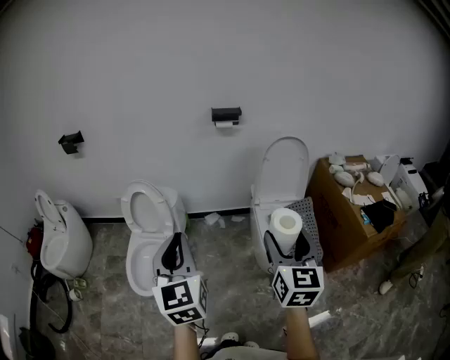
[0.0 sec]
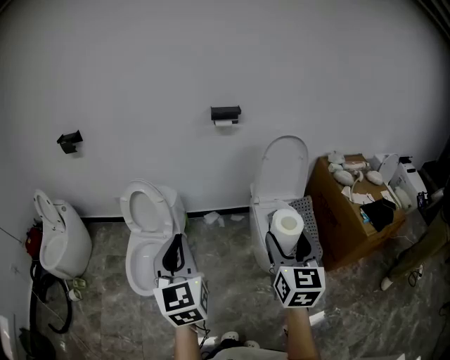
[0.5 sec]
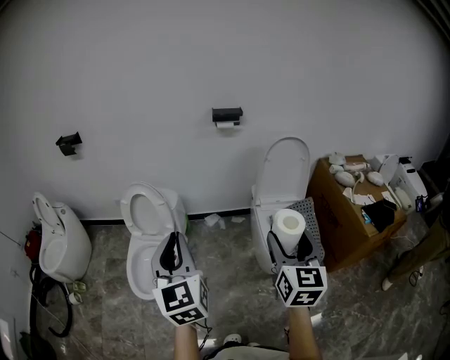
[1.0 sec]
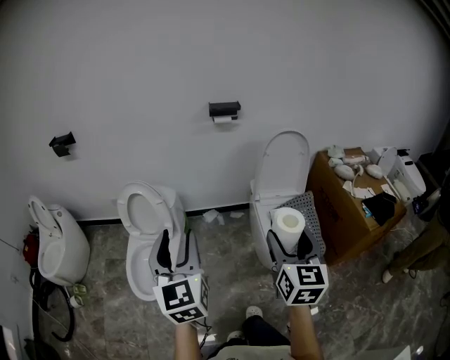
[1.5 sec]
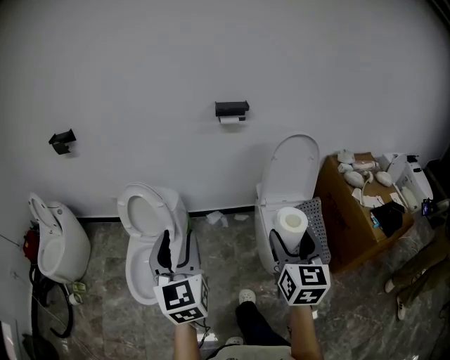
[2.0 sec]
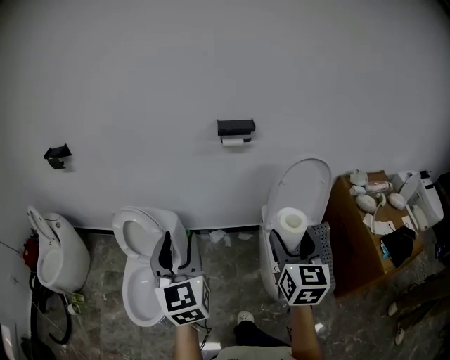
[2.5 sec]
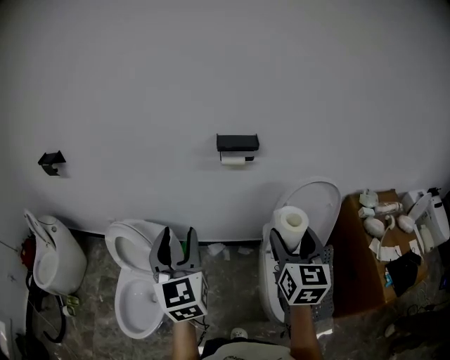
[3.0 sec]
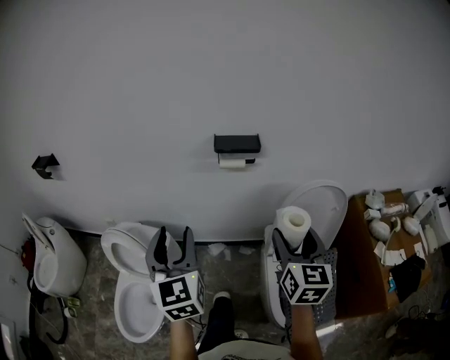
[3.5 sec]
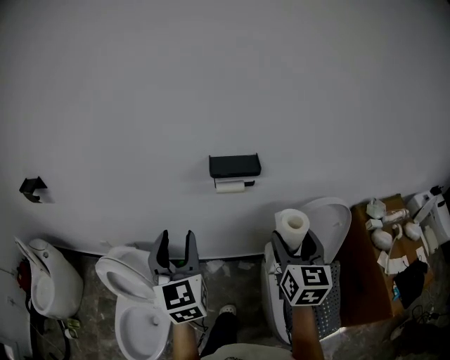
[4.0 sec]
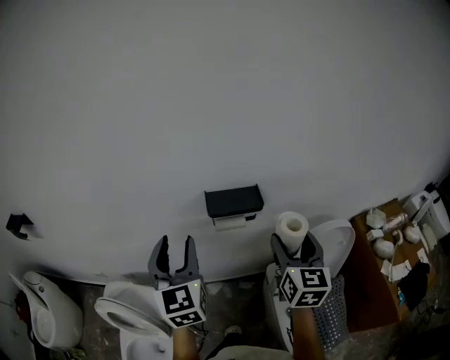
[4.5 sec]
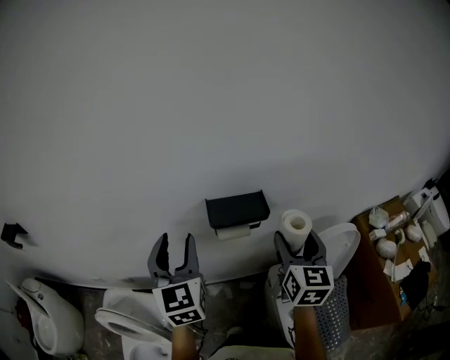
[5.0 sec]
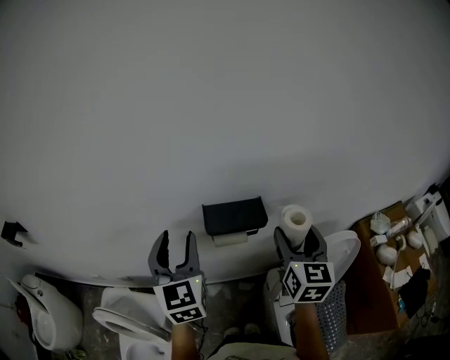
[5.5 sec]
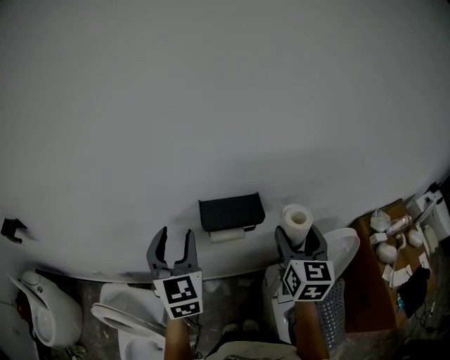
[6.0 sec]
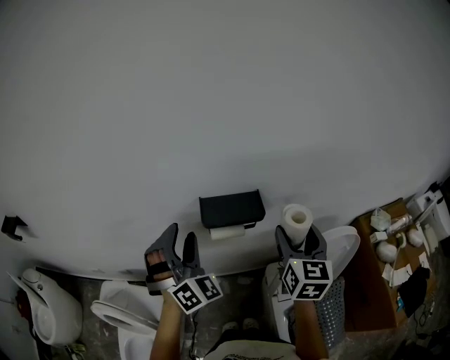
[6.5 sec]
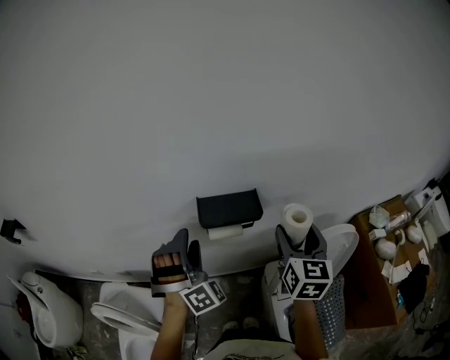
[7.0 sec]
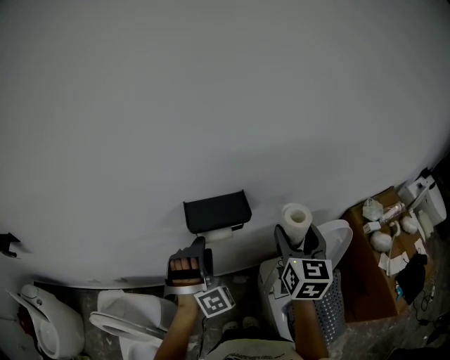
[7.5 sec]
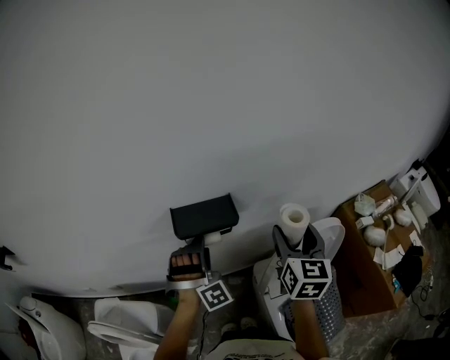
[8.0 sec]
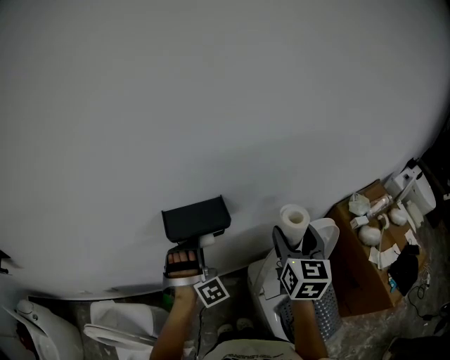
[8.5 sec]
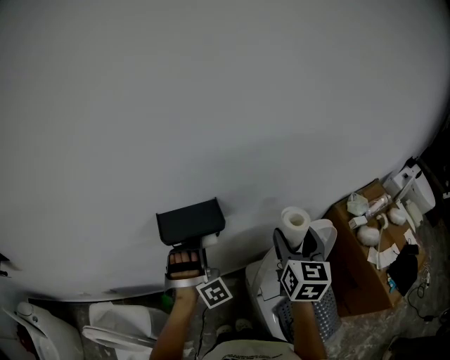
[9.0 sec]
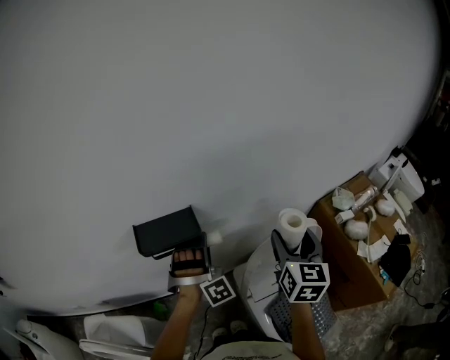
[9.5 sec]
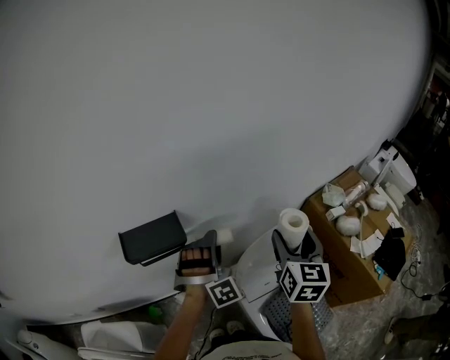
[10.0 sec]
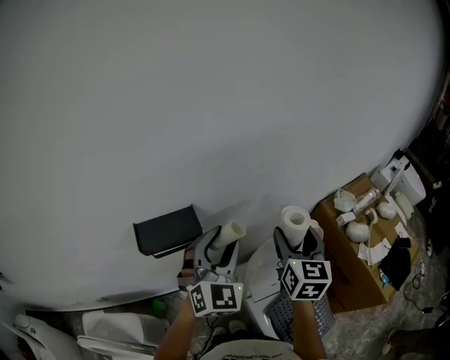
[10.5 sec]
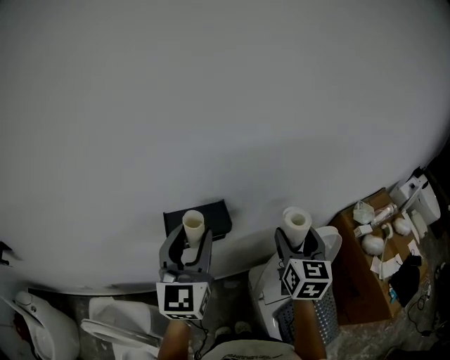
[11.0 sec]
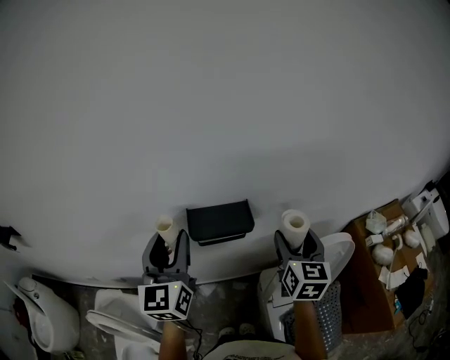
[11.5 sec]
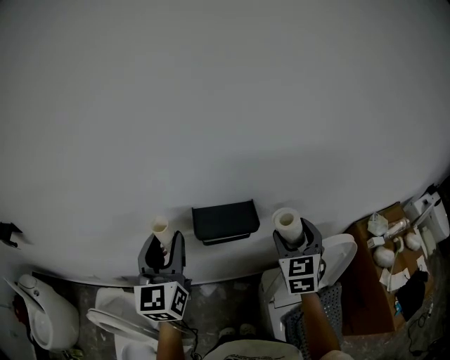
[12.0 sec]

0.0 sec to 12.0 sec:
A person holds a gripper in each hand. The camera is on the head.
0.0 sec to 2.0 sec: Both grippers move forward, approximately 10 cm. The left gripper opens its fingers.
2.0 sec to 4.0 sec: The pair of grippers is taken forward, roughly 50 cm.
4.0 sec to 6.0 sec: Both grippers travel together forward, approximately 20 cm.
6.0 sec to 8.0 sec: The left gripper is displaced downward and to the right by about 20 cm, and rolls clockwise, seen from behind, by roughly 70 degrees. Meanwhile the right gripper moves to the right, about 5 cm.
8.0 sec to 10.0 sec: The grippers both shift to the right by about 15 cm.
10.0 sec to 12.0 sec: The left gripper moves to the left and upward, some 35 cm, and twists some 80 degrees counterclockwise, seen from behind. Meanwhile the right gripper heads to the left, covering some 20 cm, and changes its angle by about 30 degrees.

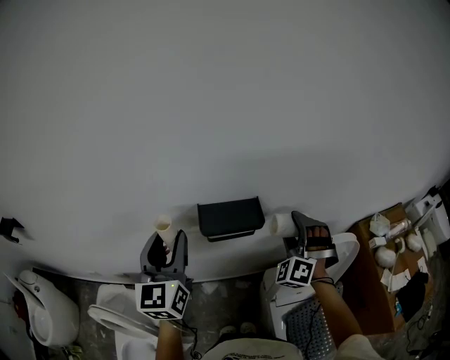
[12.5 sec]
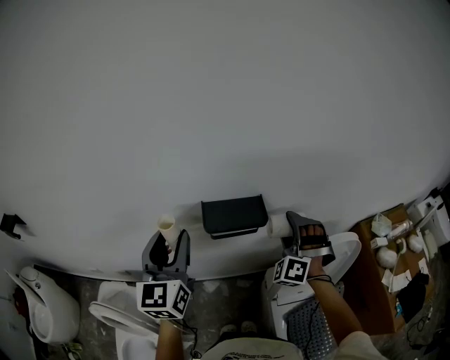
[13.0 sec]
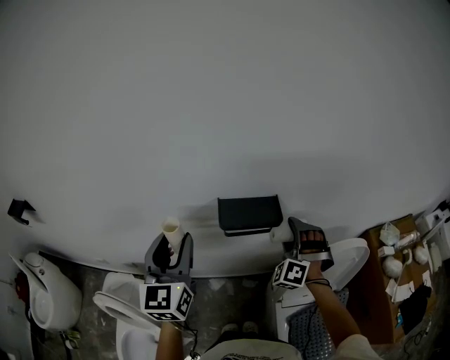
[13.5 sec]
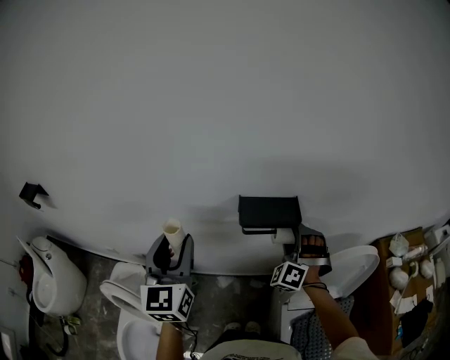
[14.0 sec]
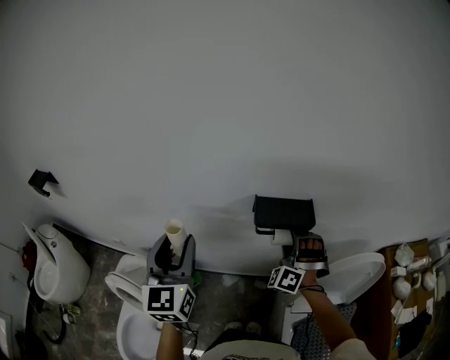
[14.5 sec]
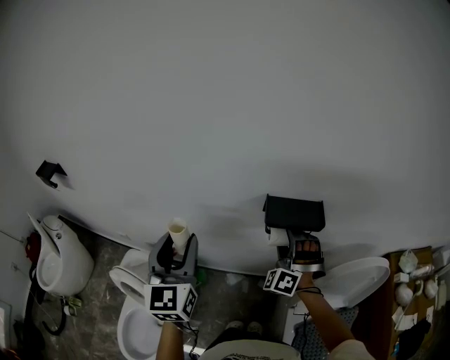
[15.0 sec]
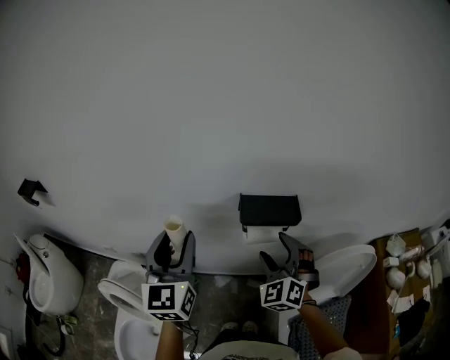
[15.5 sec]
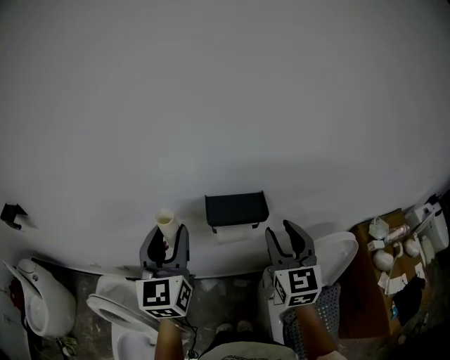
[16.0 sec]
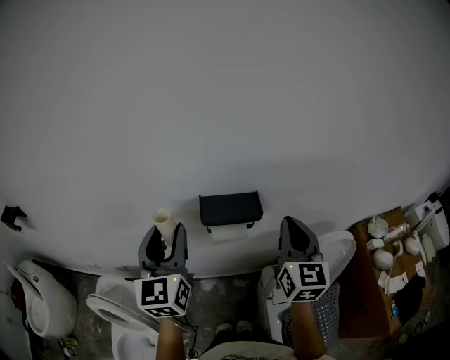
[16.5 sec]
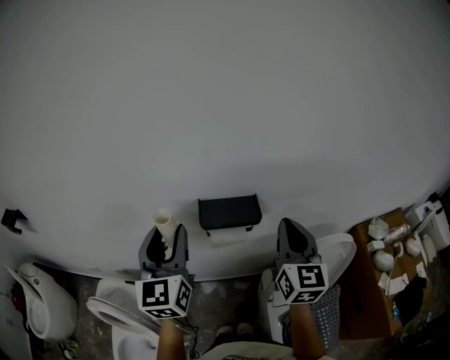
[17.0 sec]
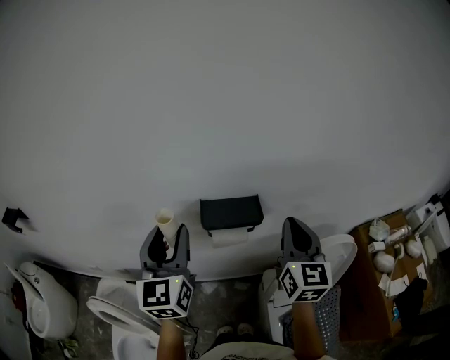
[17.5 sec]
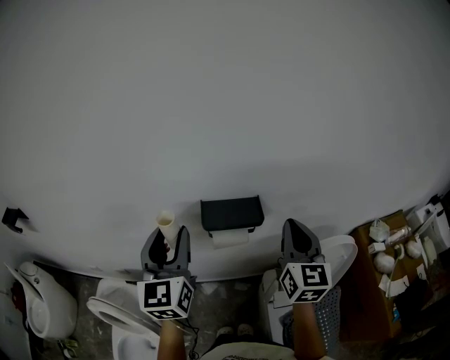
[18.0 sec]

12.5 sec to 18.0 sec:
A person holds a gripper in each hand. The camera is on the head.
12.5 sec to 14.5 sec: The right gripper heads to the left, covering about 15 cm. Meanwhile the left gripper shifts roughly 15 cm to the left and backward.
14.5 sec to 16.0 sec: The left gripper goes some 10 cm to the right. The right gripper moves upward, backward and to the right, about 15 cm, twists roughly 70 degrees clockwise, seen from behind, and closes up.
16.0 sec to 18.0 sec: The right gripper changes place by roughly 5 cm, and closes up.

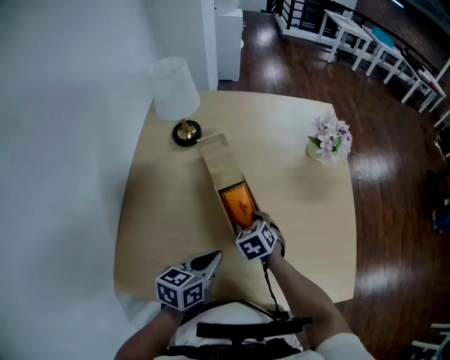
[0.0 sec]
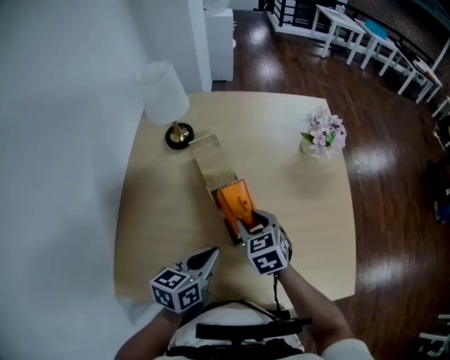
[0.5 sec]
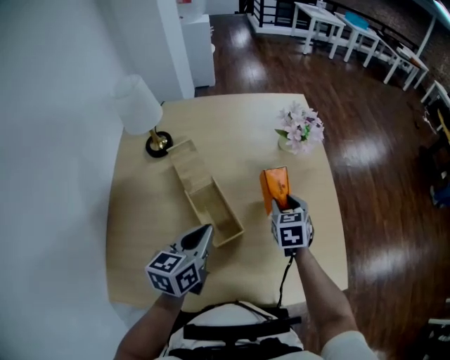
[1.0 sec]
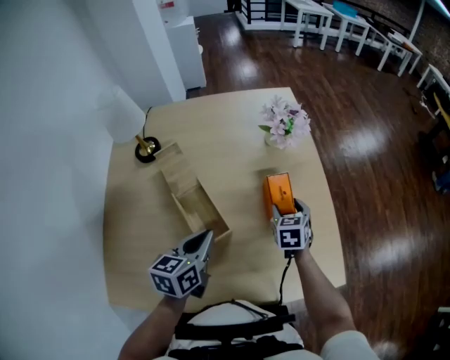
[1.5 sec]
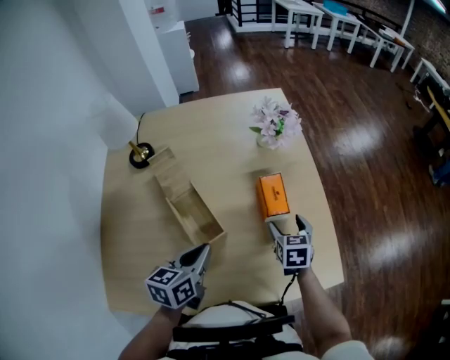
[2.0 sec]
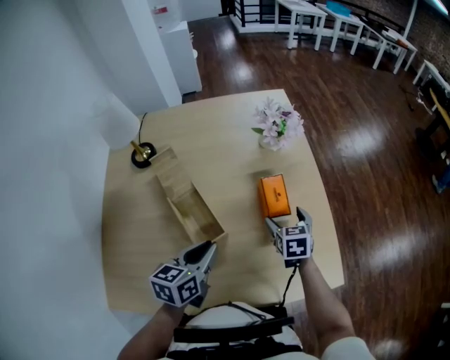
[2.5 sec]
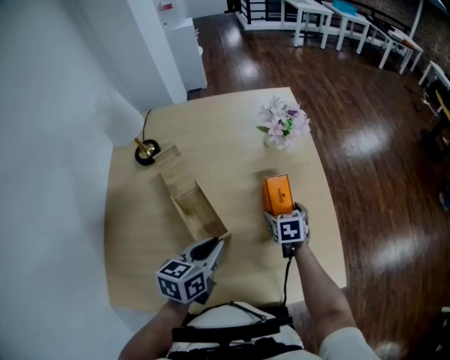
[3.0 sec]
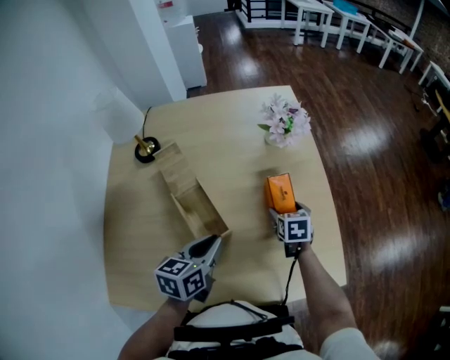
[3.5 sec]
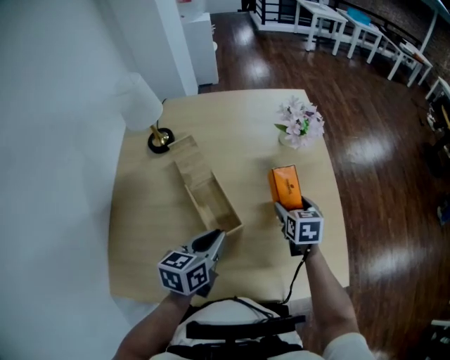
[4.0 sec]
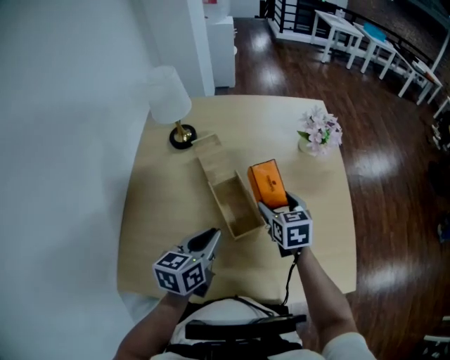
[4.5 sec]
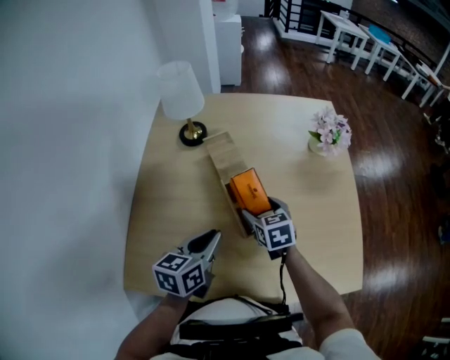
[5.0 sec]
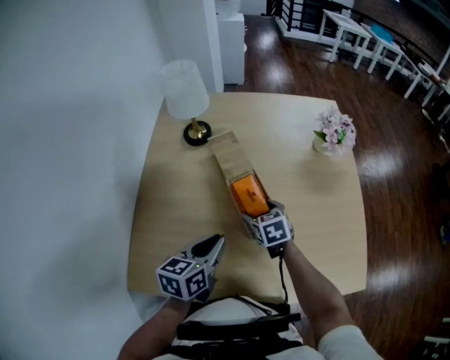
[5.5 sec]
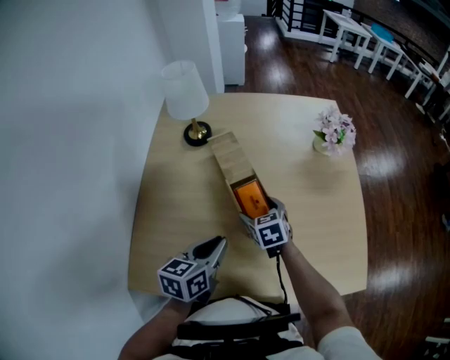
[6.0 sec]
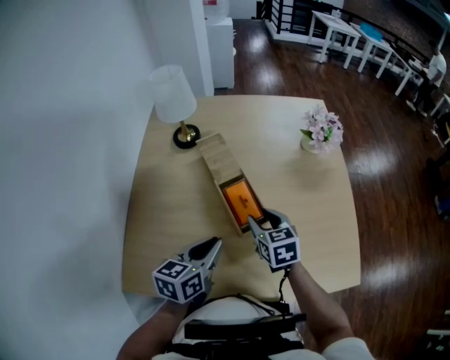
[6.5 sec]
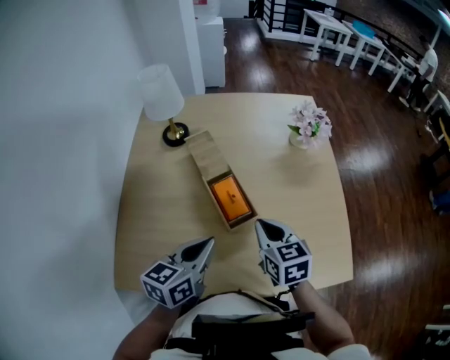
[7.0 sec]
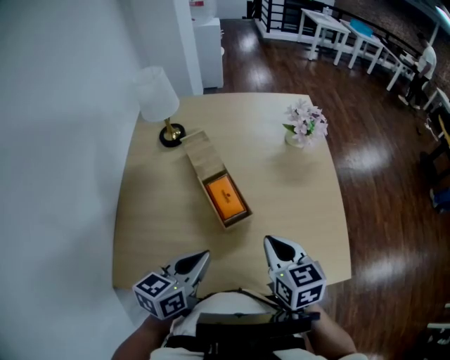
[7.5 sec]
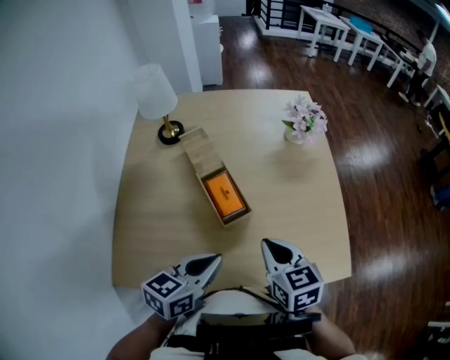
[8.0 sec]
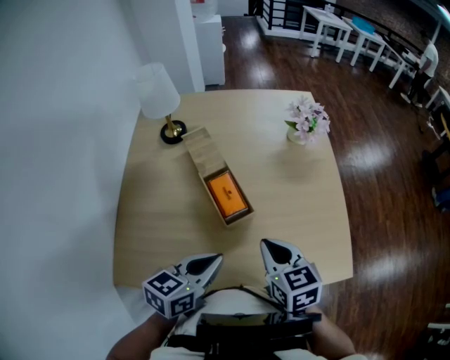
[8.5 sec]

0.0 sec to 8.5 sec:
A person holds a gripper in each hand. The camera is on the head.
0.0 sec to 2.0 sec: The left gripper travels to the right and forward by roughly 10 cm, while the right gripper is displaced to the right by roughly 30 cm, and swivels approximately 40 degrees.
2.0 sec to 4.0 sec: The right gripper travels to the left by roughly 5 cm, and travels downward and back again, approximately 5 cm each way.
4.0 sec to 6.5 sec: The right gripper travels to the left by roughly 20 cm, and closes, while the left gripper goes approximately 10 cm to the left and backward.
6.5 sec to 8.5 sec: The left gripper travels to the right and backward by approximately 10 cm; the right gripper is displaced backward, upward and to the right by roughly 15 cm, and closes its fingers.
